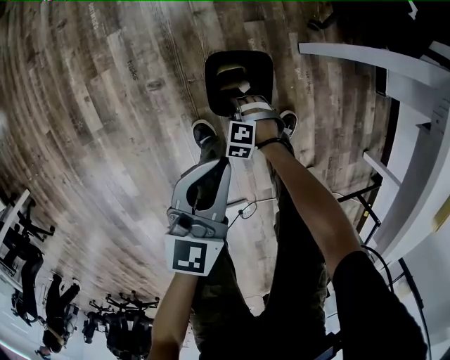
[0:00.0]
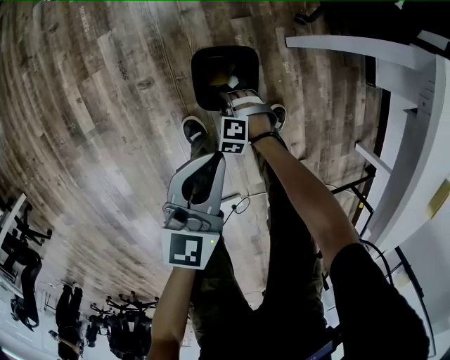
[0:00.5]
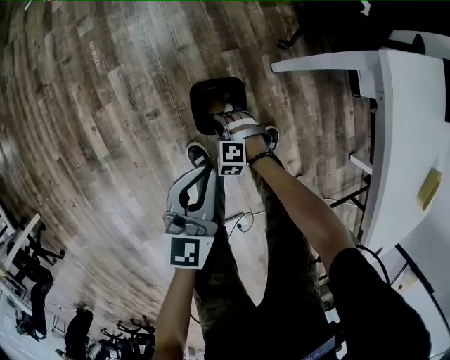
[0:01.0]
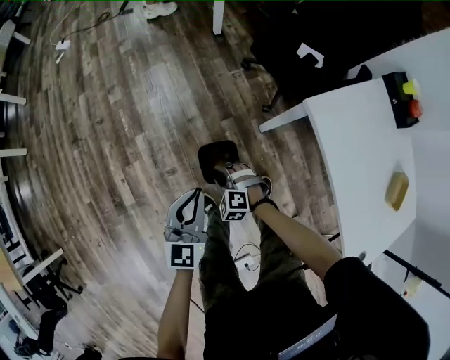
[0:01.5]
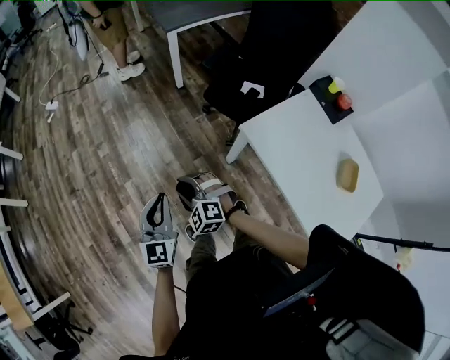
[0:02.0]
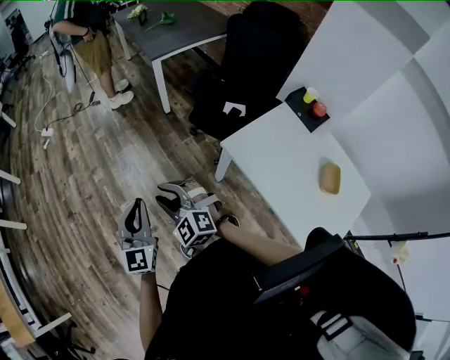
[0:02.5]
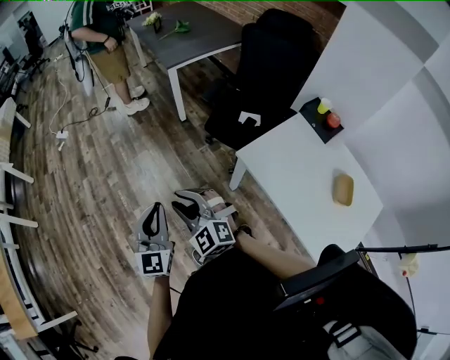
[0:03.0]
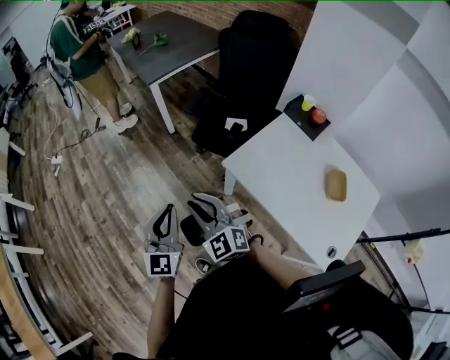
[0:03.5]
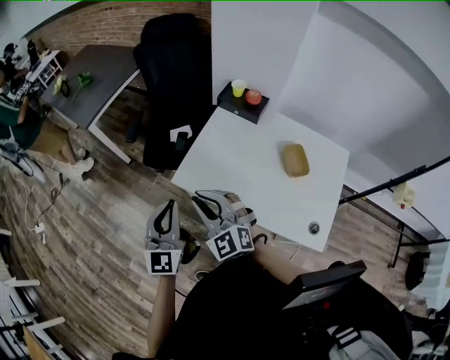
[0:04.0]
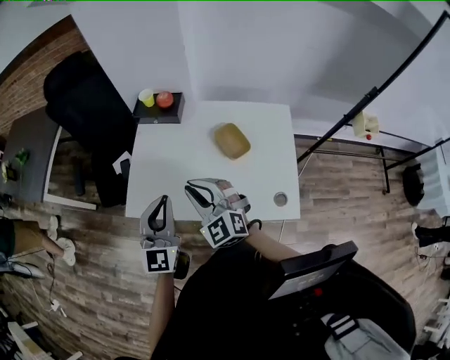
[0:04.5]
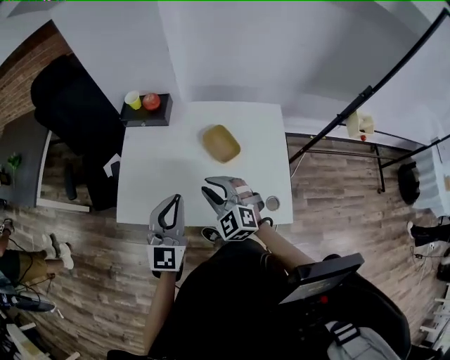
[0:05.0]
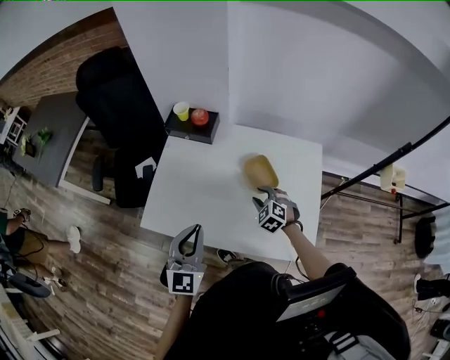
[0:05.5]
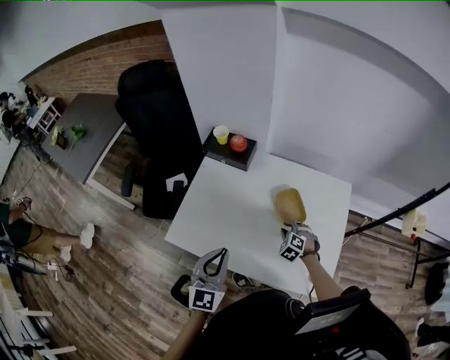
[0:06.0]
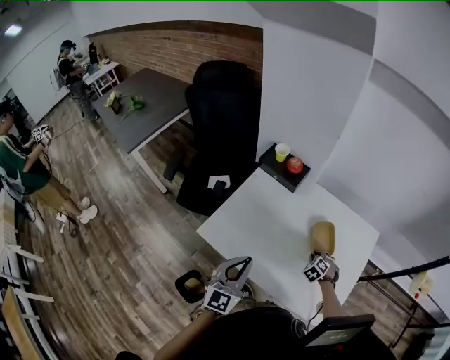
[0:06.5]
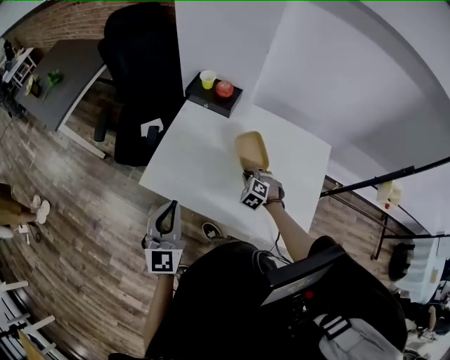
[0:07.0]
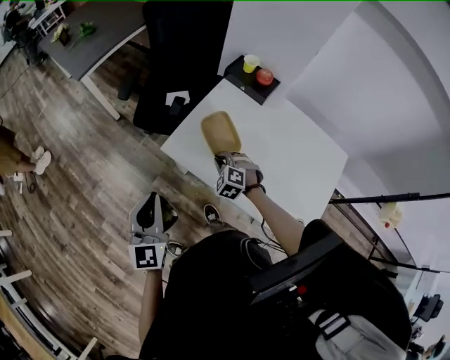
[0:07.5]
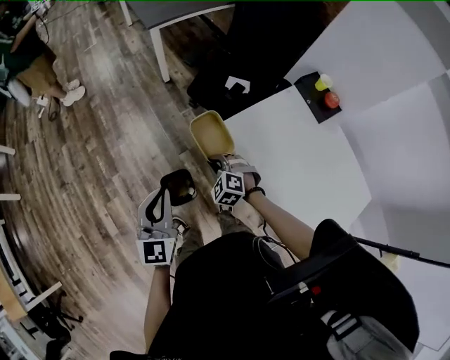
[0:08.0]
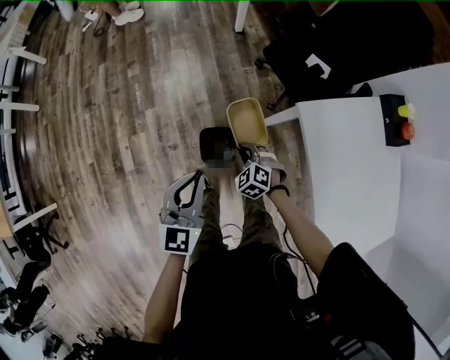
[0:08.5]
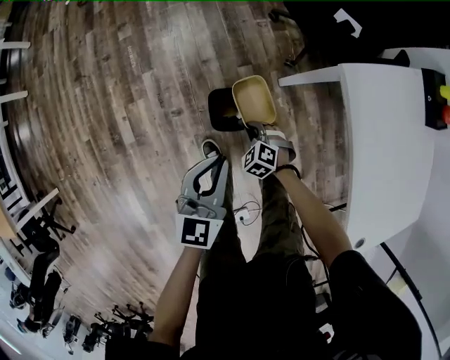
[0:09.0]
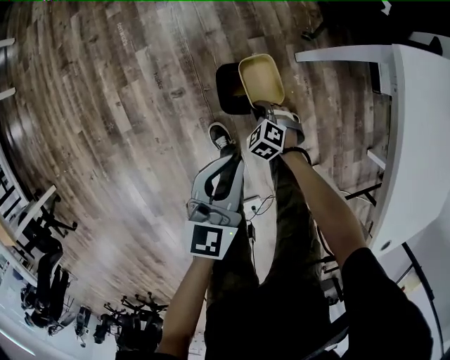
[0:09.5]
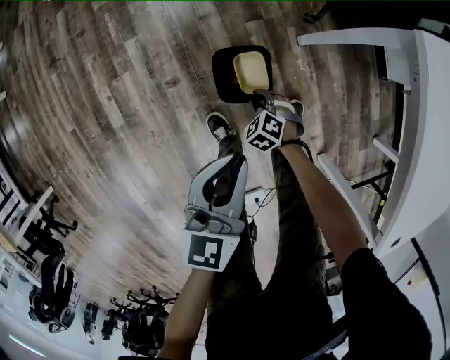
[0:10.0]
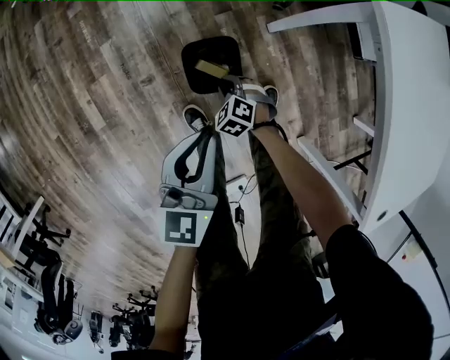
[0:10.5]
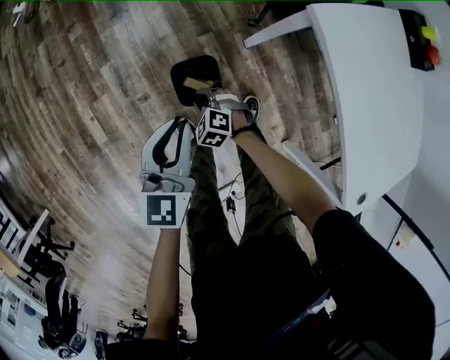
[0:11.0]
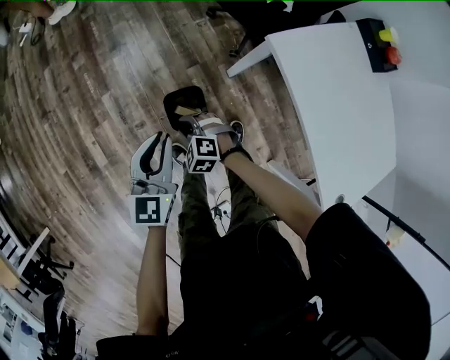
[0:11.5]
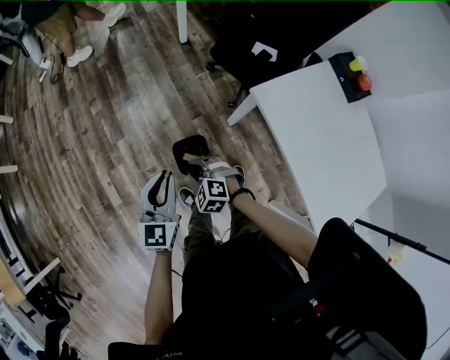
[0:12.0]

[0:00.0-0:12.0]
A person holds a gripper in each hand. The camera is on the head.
0:00.0 to 0:02.0: The left gripper moves upward, some 40 cm, and turns by approximately 20 degrees. Meanwhile the right gripper goes roughly 60 cm upward, and tilts its fingers approximately 40 degrees upward.
0:02.0 to 0:04.0: The right gripper moves about 40 cm, and changes its angle by approximately 50 degrees; the left gripper changes place by some 35 cm, and swivels approximately 40 degrees.
0:04.0 to 0:06.0: The right gripper ends up some 50 cm from where it was, and tips its fingers downward by roughly 40 degrees, while the left gripper shifts by about 25 cm.
0:06.0 to 0:08.0: The pair of grippers is taken roughly 50 cm. The left gripper rotates about 50 degrees, while the right gripper turns by approximately 50 degrees.
0:08.0 to 0:10.0: Both grippers travel together downward, some 40 cm. The left gripper rotates roughly 20 degrees, while the right gripper rotates roughly 20 degrees.
0:10.0 to 0:12.0: The right gripper heads upward, covering about 40 cm, while the left gripper travels upward by about 20 cm.

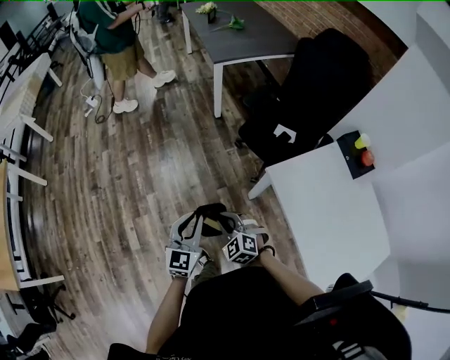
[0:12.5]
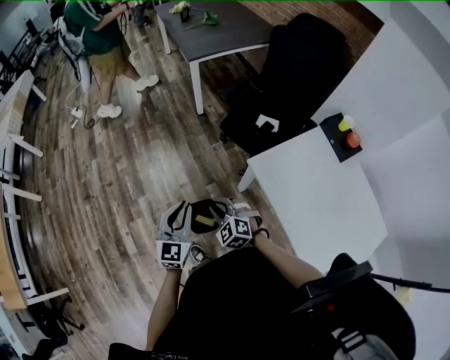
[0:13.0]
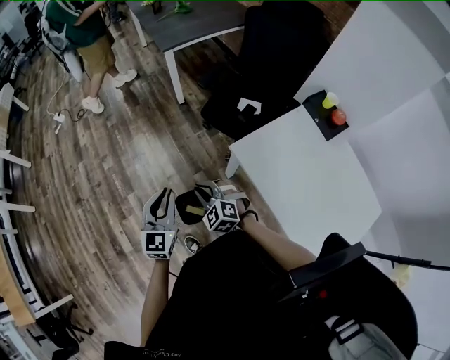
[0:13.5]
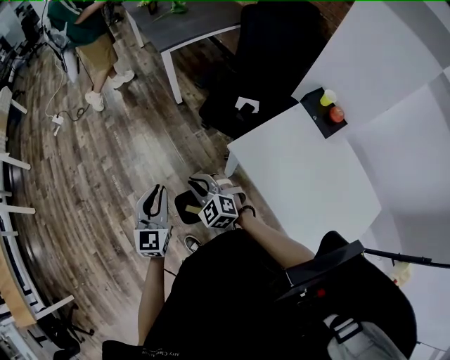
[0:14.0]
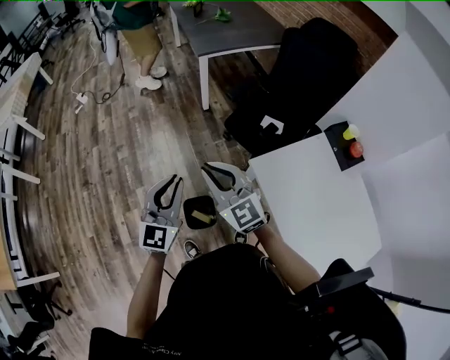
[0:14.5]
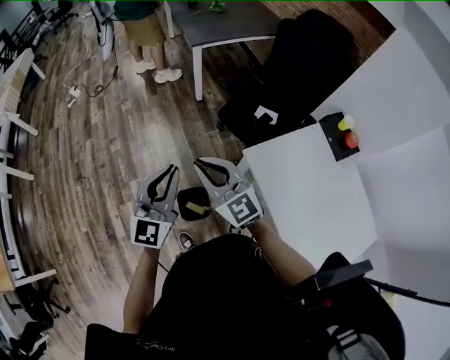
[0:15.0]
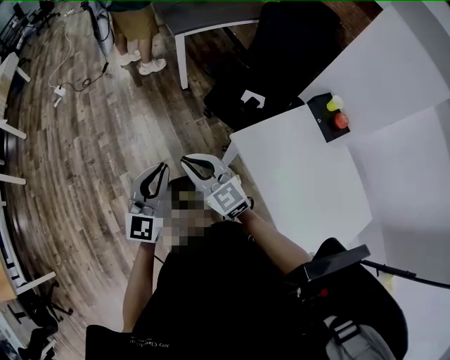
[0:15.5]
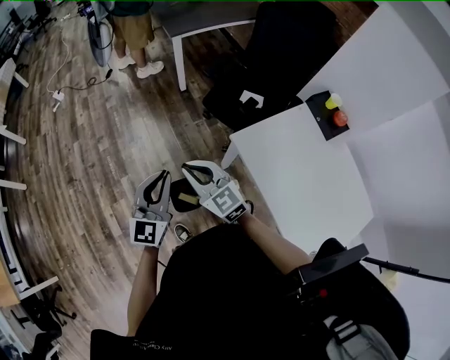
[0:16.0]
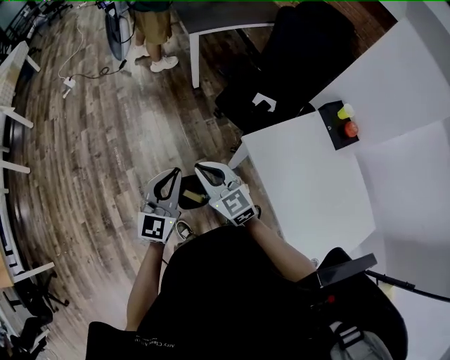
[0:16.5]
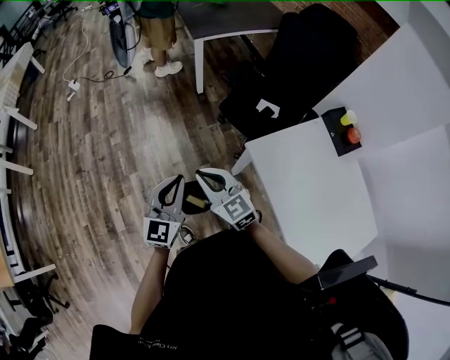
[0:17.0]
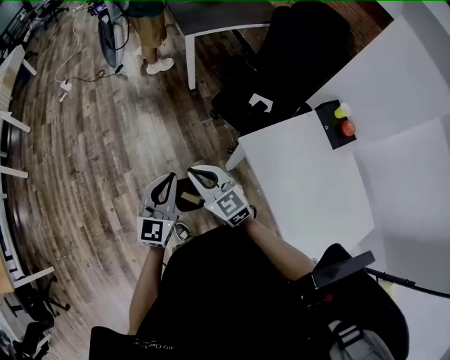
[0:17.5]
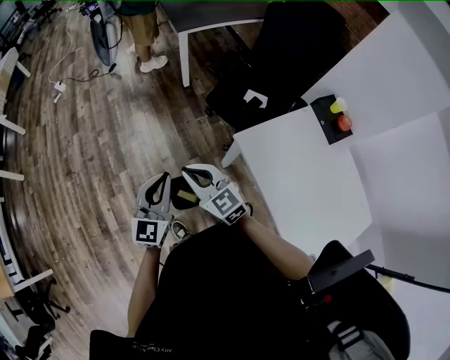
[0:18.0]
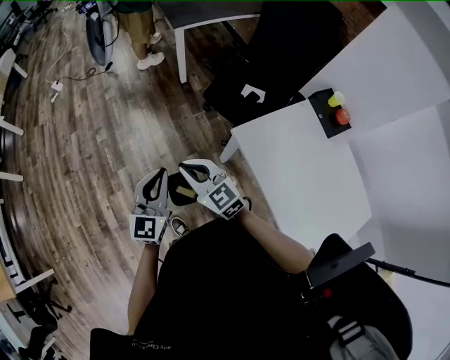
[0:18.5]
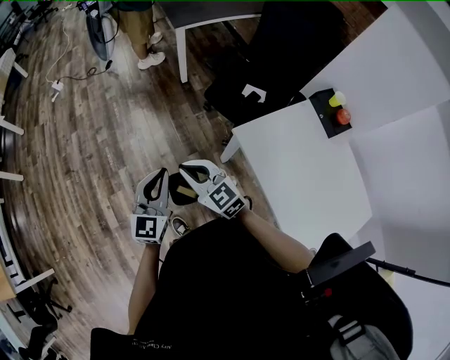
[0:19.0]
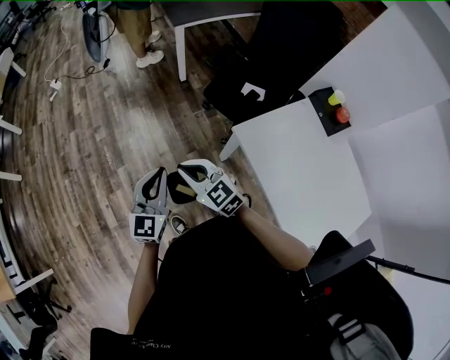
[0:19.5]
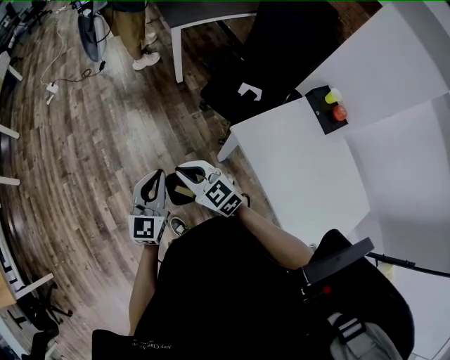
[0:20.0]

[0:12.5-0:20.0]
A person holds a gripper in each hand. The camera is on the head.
0:12.5 to 0:14.5: The right gripper is displaced upward and forward by some 25 cm, and tips its fingers upward by approximately 40 degrees. The left gripper shifts about 15 cm upward and forward.
0:14.5 to 0:16.5: The left gripper changes place by some 5 cm; the right gripper heads downward, covering about 10 cm.
0:16.5 to 0:20.0: The grippers move only a little.

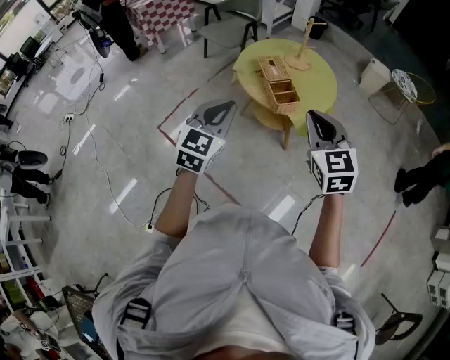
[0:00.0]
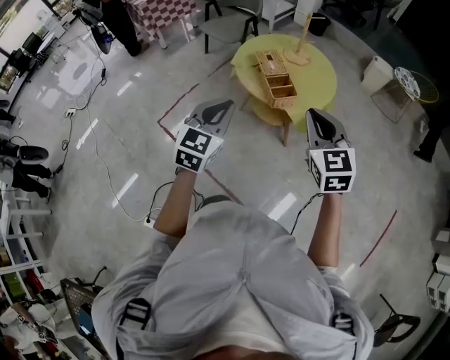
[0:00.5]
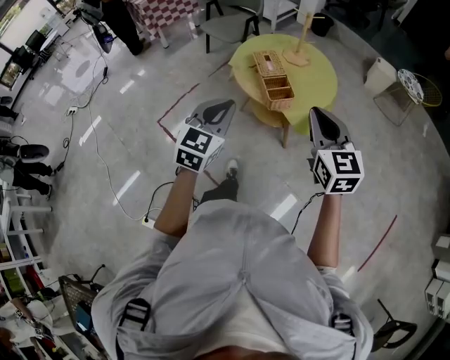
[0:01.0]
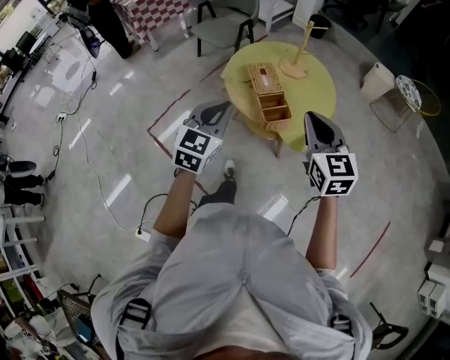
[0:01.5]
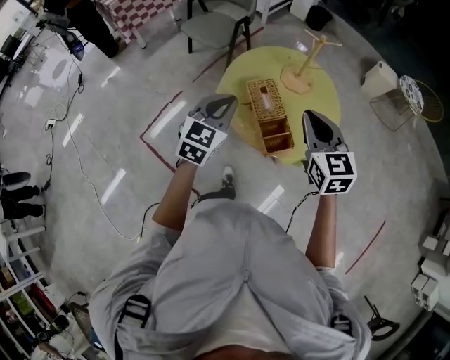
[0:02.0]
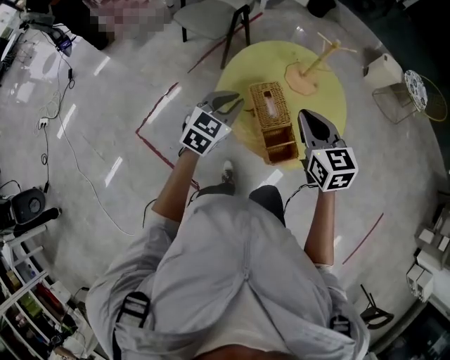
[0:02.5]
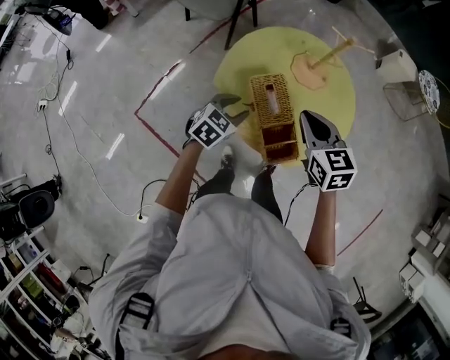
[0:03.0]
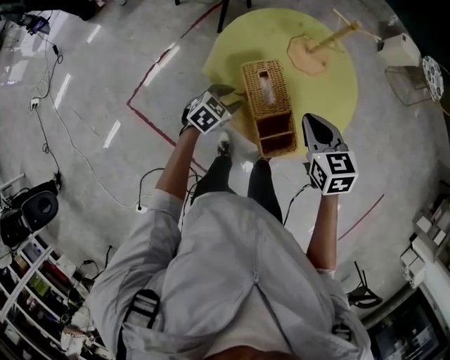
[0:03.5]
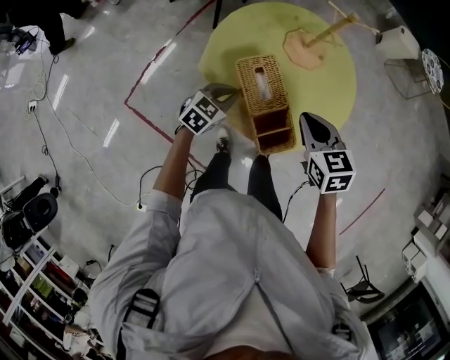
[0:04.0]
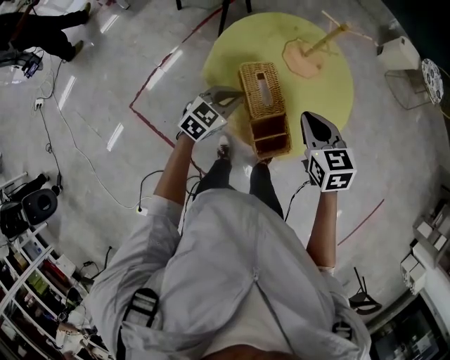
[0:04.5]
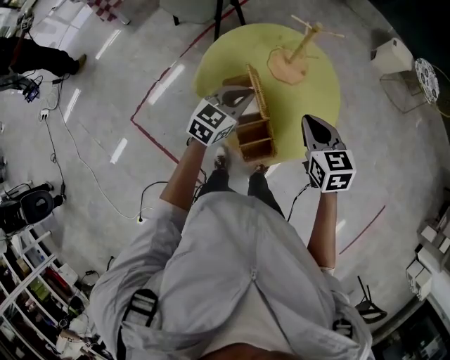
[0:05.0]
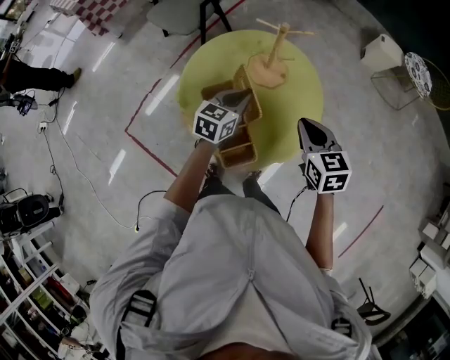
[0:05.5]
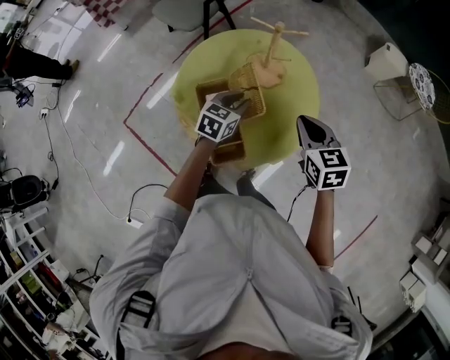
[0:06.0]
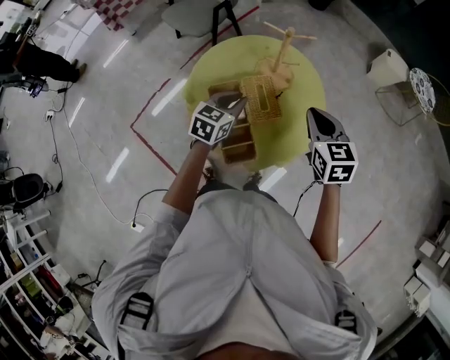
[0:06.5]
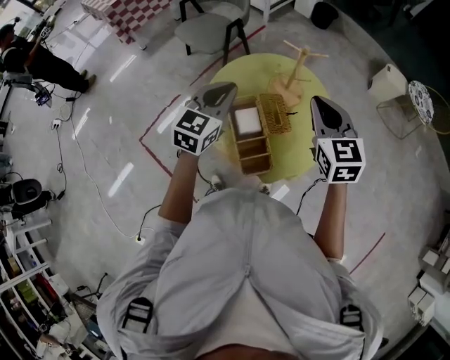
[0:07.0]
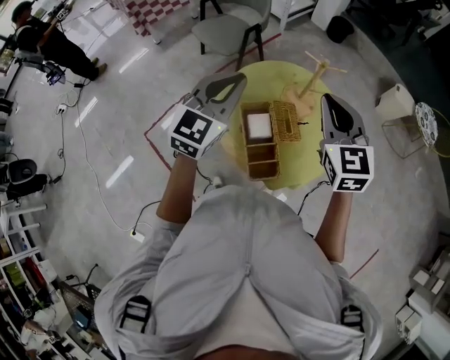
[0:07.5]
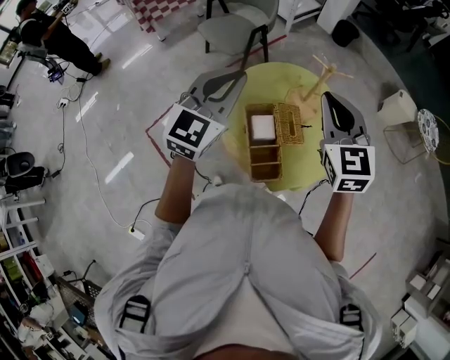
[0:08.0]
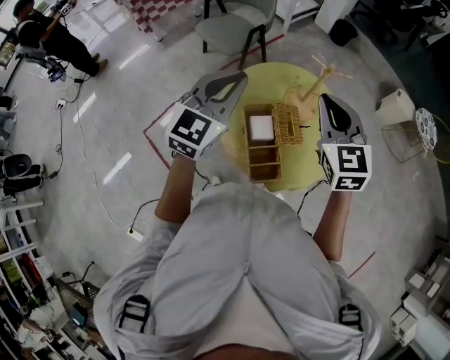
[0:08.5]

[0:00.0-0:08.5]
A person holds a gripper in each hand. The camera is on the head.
0:00.0 to 0:02.0: The grippers both shift forward by about 30 cm.
0:02.0 to 0:04.0: The right gripper heads downward and forward, covering about 20 cm, and turns by approximately 30 degrees; the left gripper travels downward by about 25 cm, turns by some 30 degrees, and opens, then closes once more.
0:04.0 to 0:06.5: The left gripper is displaced upward, to the right and forward by about 20 cm, and changes its angle by about 20 degrees. Meanwhile the right gripper shifts about 15 cm to the right, upward and forward.
0:06.5 to 0:08.5: The two grippers go some 25 cm upward and to the left. The left gripper rotates approximately 30 degrees, while the right gripper swivels roughly 20 degrees.
